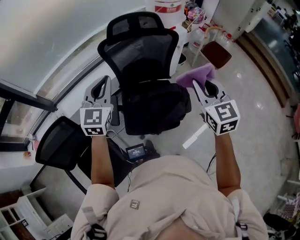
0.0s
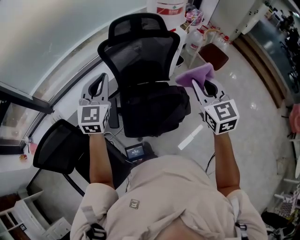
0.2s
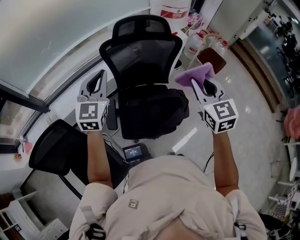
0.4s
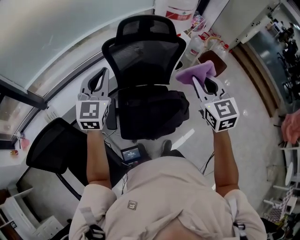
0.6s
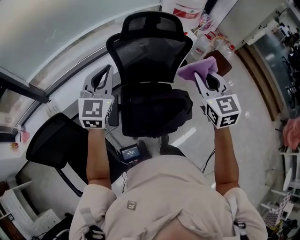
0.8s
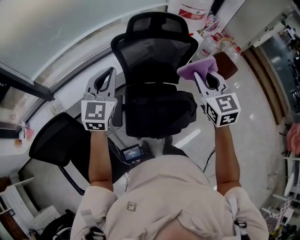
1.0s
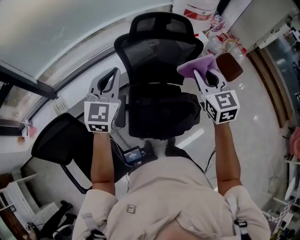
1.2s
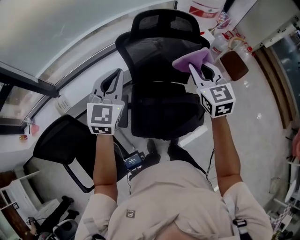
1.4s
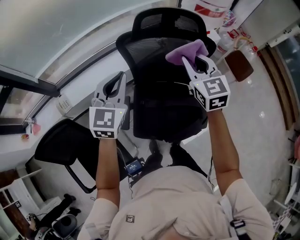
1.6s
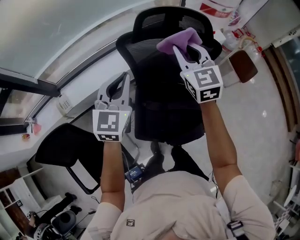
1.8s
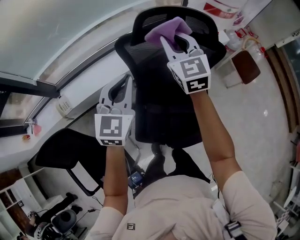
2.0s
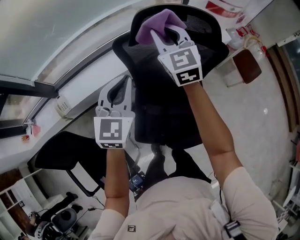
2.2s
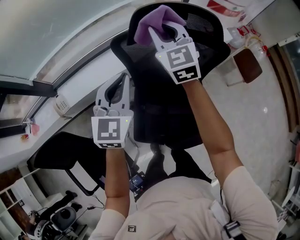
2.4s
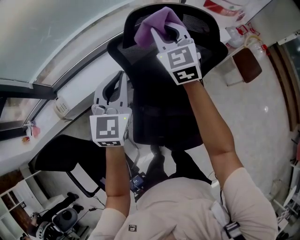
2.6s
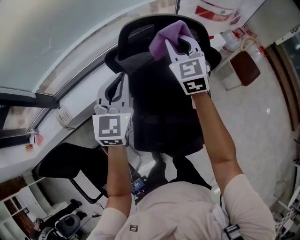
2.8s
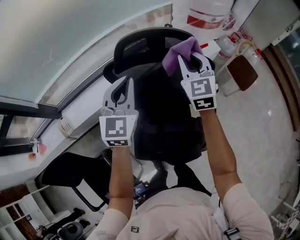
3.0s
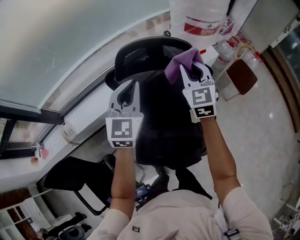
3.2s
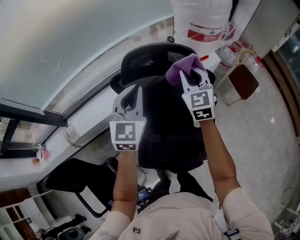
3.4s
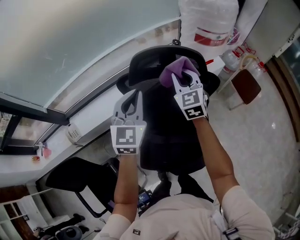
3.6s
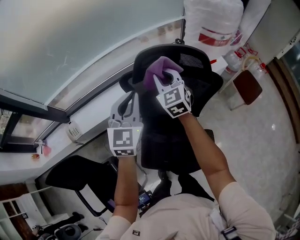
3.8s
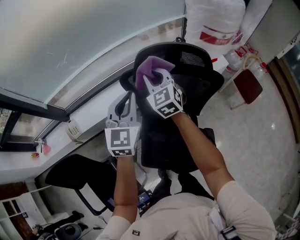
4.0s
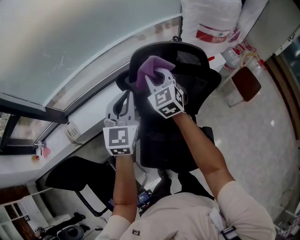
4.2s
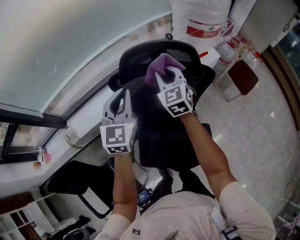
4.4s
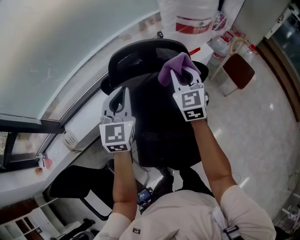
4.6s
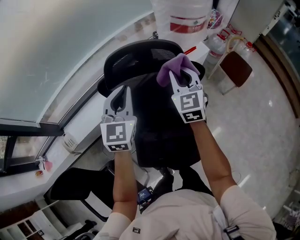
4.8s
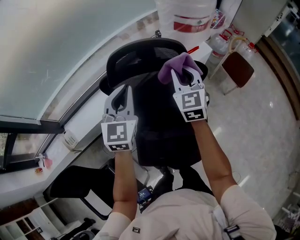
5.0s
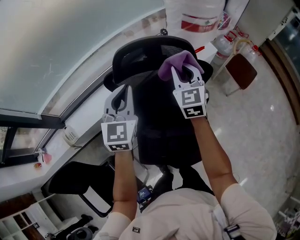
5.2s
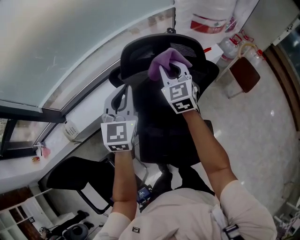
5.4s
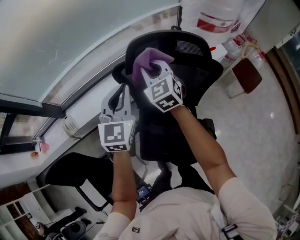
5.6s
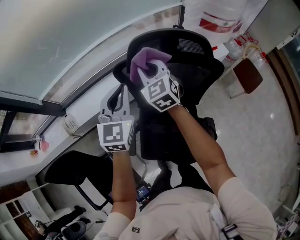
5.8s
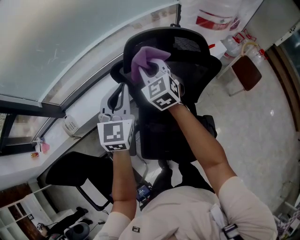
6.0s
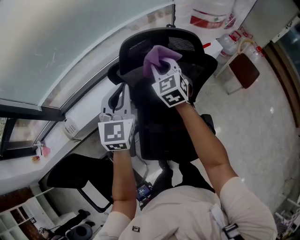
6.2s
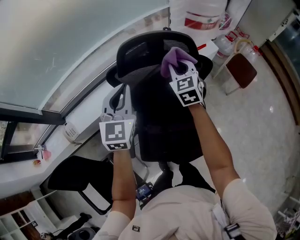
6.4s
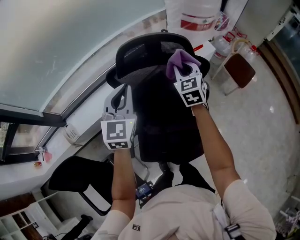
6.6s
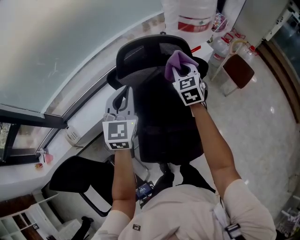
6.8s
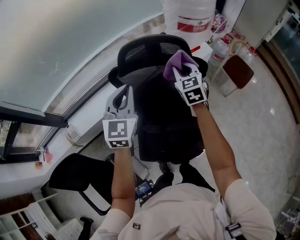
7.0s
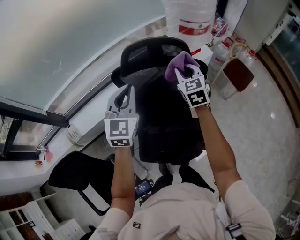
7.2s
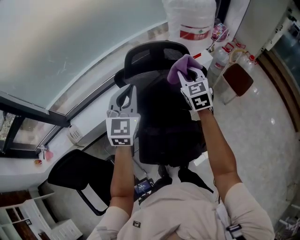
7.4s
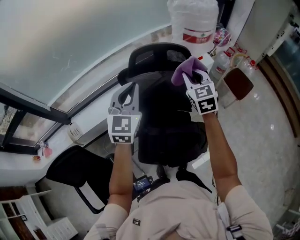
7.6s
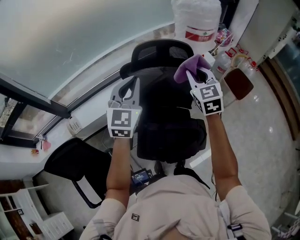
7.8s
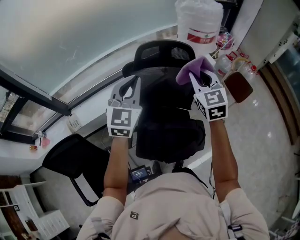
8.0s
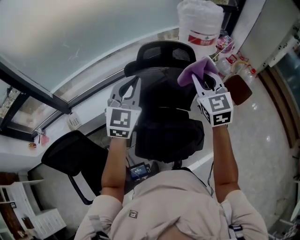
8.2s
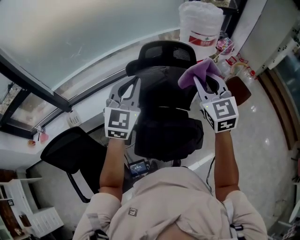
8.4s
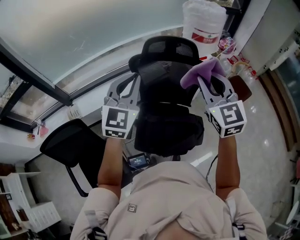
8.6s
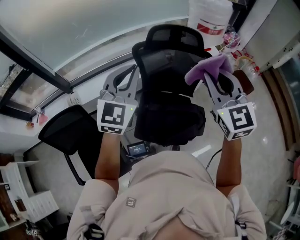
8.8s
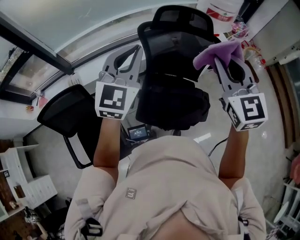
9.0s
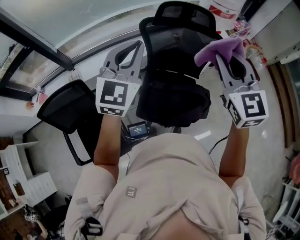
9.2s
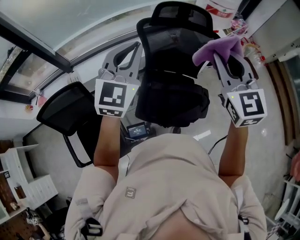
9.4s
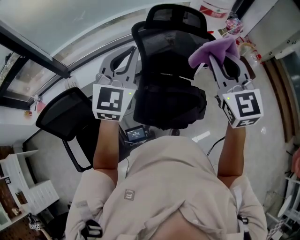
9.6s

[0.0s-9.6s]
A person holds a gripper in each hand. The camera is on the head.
0.0s to 1.6s: The right gripper travels forward and to the left by approximately 30 cm. Meanwhile the left gripper travels forward, to the left and downward by roughly 15 cm.
1.6s to 3.2s: Both grippers move forward and to the right, approximately 15 cm.
3.2s to 4.8s: The left gripper travels to the left and back again, roughly 10 cm each way. The right gripper goes to the left and returns, approximately 20 cm each way.
4.8s to 6.4s: The left gripper goes approximately 5 cm to the left, while the right gripper reaches some 20 cm to the left, then returns.
6.4s to 8.0s: The right gripper is displaced upward and backward by approximately 20 cm, while the left gripper goes roughly 15 cm upward and backward.
8.0s to 9.6s: The right gripper is displaced backward and upward by approximately 20 cm, while the left gripper travels backward by some 15 cm.

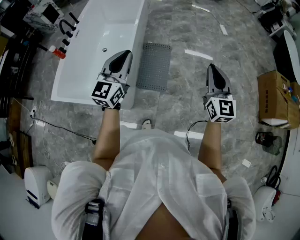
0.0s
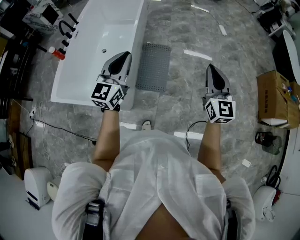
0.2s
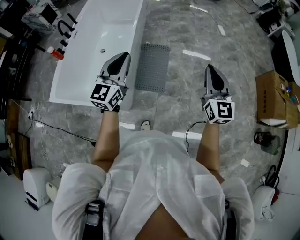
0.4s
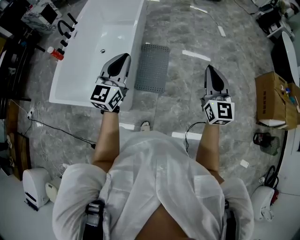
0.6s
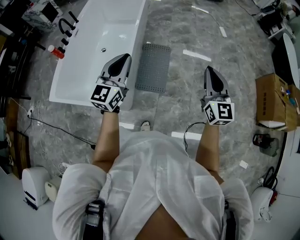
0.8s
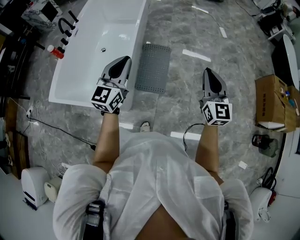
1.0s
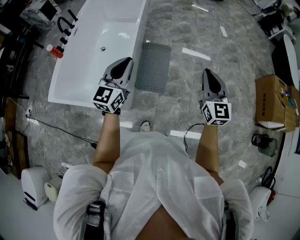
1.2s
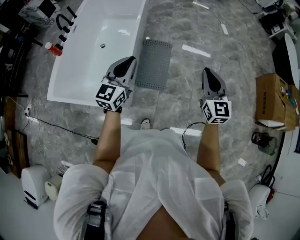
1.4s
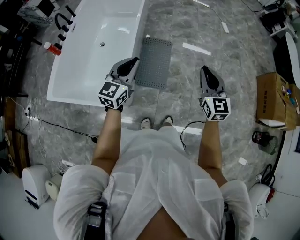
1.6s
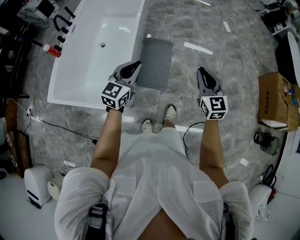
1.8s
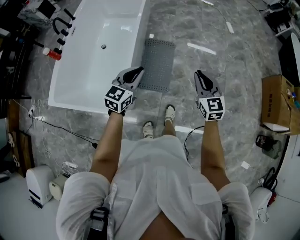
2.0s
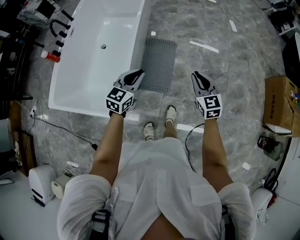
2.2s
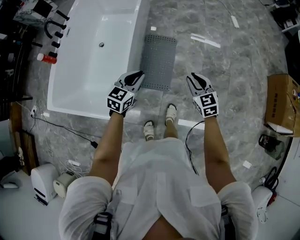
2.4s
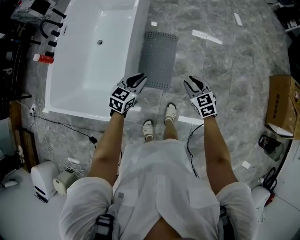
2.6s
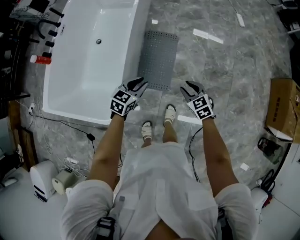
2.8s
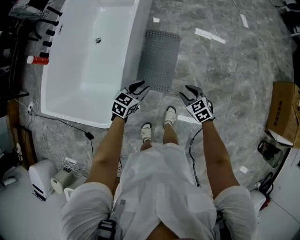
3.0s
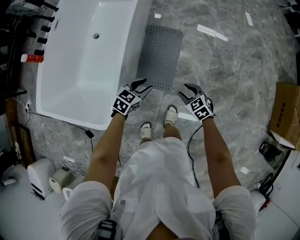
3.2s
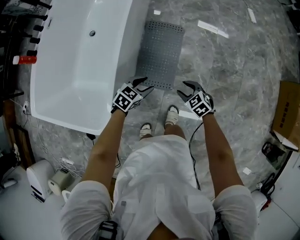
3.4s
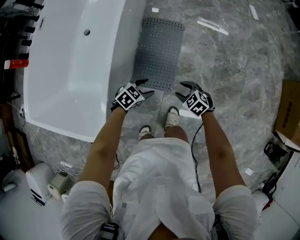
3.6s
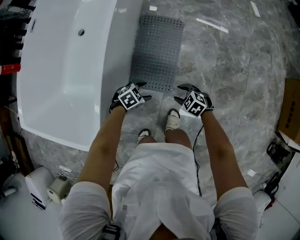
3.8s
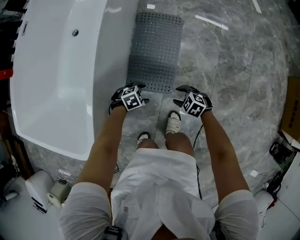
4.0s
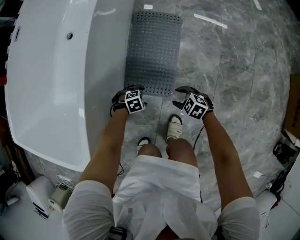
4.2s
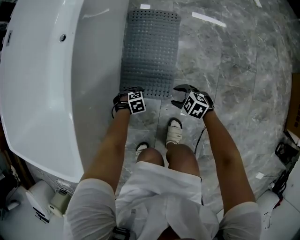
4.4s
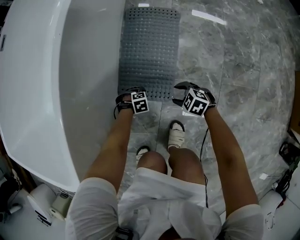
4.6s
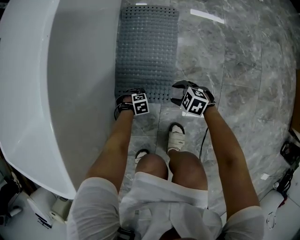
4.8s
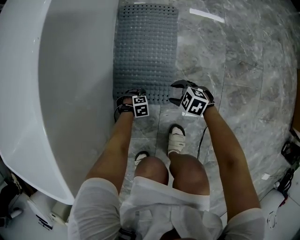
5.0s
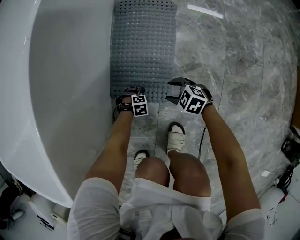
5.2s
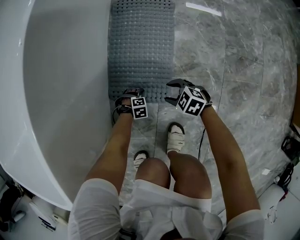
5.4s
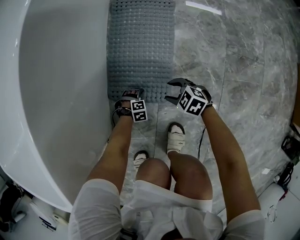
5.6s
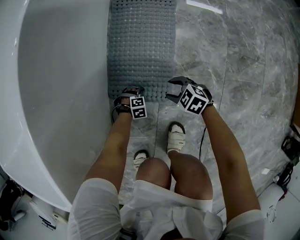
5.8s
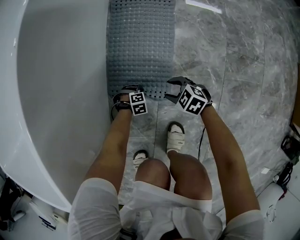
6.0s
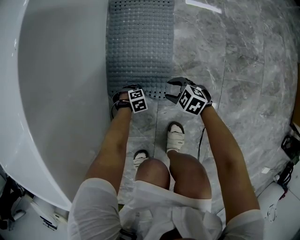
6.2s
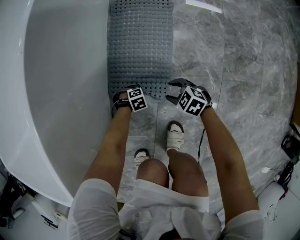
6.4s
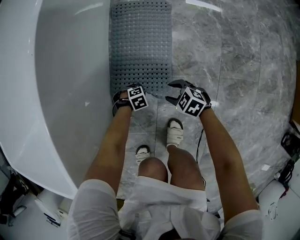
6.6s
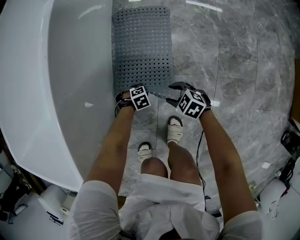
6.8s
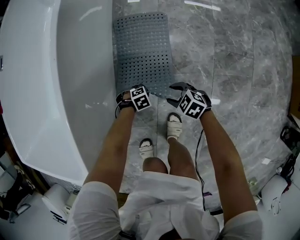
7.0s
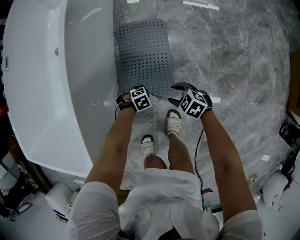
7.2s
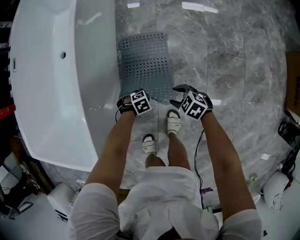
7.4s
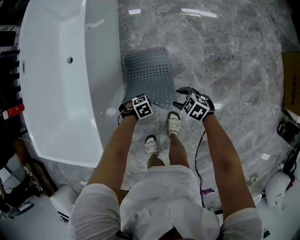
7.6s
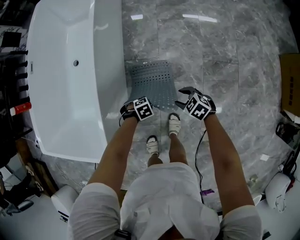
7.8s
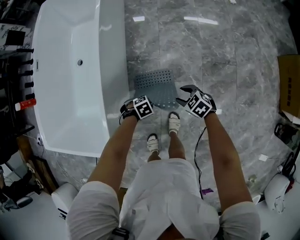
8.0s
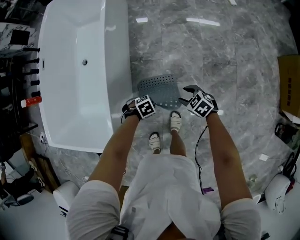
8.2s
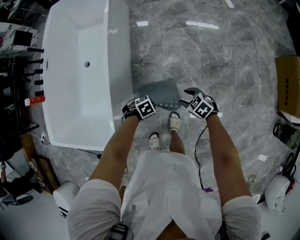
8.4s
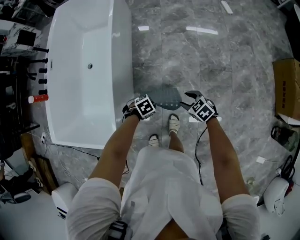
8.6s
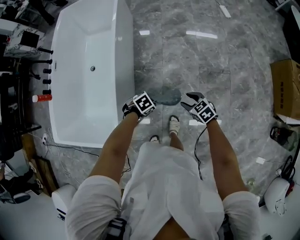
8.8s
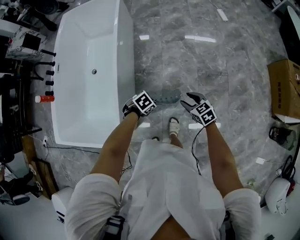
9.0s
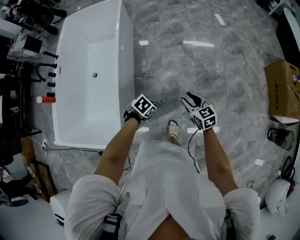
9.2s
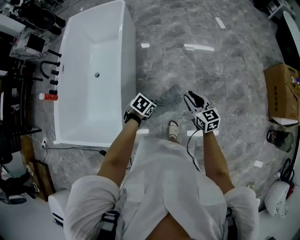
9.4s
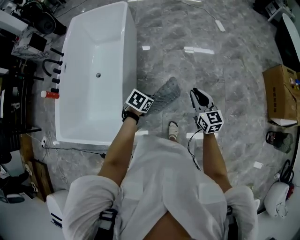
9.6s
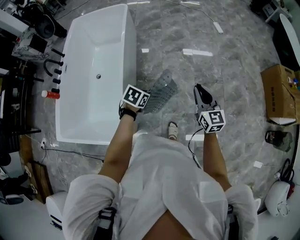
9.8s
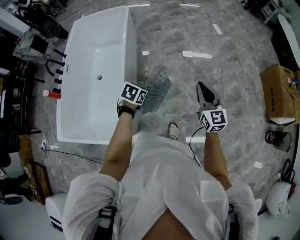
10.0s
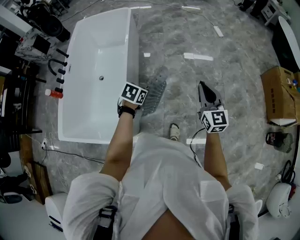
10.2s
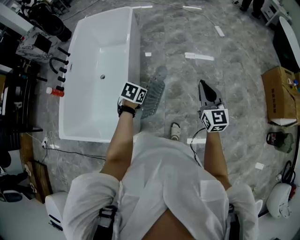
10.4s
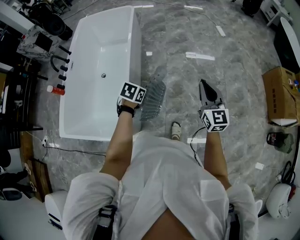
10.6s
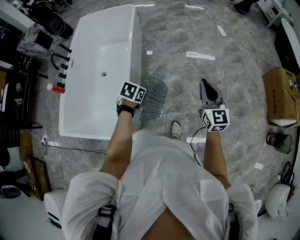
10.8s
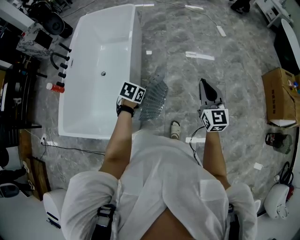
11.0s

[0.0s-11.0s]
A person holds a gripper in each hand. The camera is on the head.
0.0s to 1.6s: The right gripper heads downward and to the left, covering about 10 cm, while the left gripper travels downward by some 10 cm.
1.6s to 3.2s: The grippers both shift downward by some 40 cm. The right gripper tips its fingers downward by approximately 40 degrees, and opens up. Meanwhile the left gripper tips its fingers downward by some 30 degrees.
3.2s to 4.8s: The grippers both shift downward by roughly 50 cm. The left gripper tilts its fingers about 30 degrees downward, and opens up. The right gripper turns by roughly 30 degrees.
4.8s to 6.2s: The left gripper travels downward by roughly 5 cm, and closes up.
6.2s to 7.8s: The grippers both shift upward by some 40 cm.
7.8s to 9.4s: Both grippers travel together upward, some 35 cm. The left gripper rotates some 30 degrees; the right gripper tilts its fingers roughly 40 degrees upward, and closes.
9.4s to 11.0s: The right gripper goes about 15 cm upward, swivels some 30 degrees, and closes its fingers. Meanwhile the left gripper moves upward and to the left, about 15 cm.

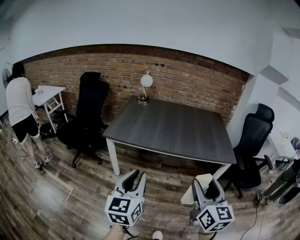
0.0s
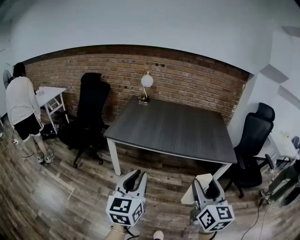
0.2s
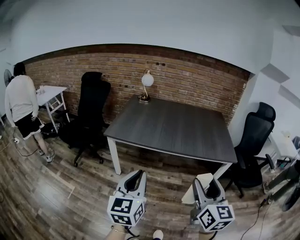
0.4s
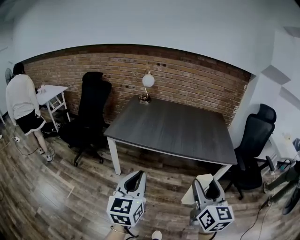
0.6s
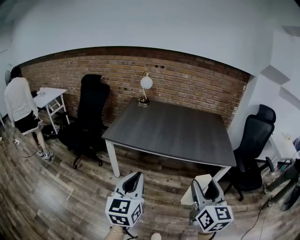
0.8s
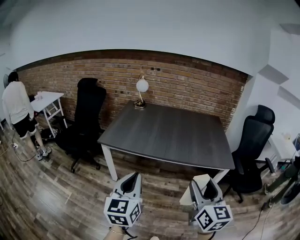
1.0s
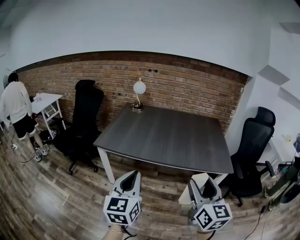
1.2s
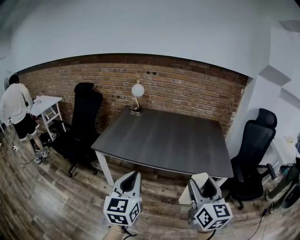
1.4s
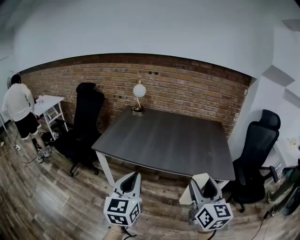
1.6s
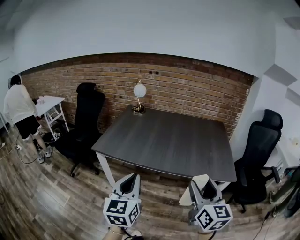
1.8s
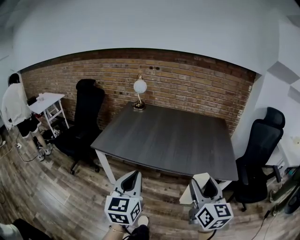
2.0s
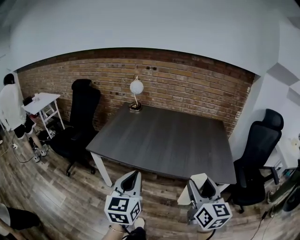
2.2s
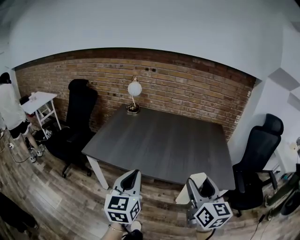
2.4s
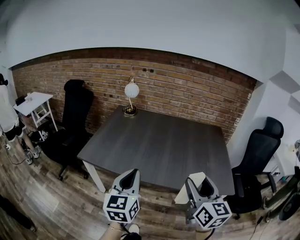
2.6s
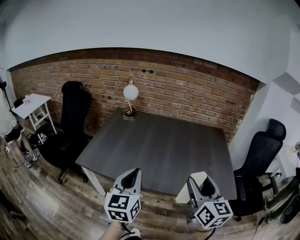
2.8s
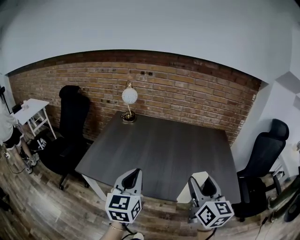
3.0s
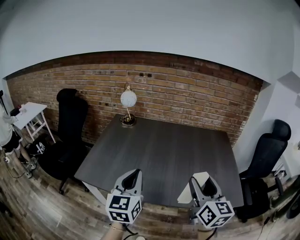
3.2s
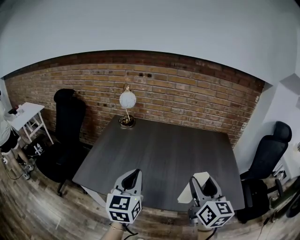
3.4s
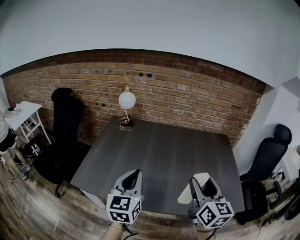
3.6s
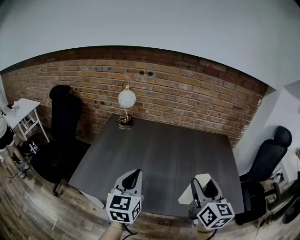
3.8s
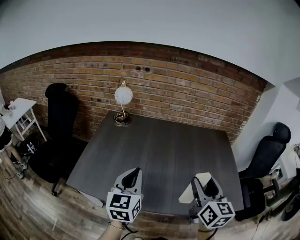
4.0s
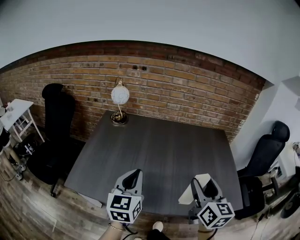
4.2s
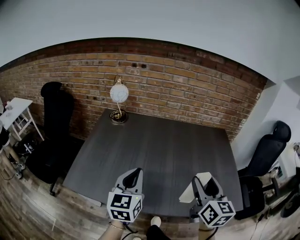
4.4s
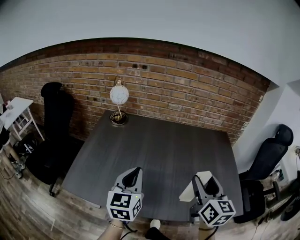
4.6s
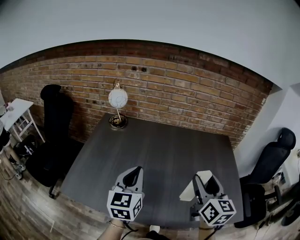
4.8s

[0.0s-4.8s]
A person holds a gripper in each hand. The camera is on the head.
0.0s to 1.6s: Both grippers move forward and to the right, approximately 15 cm.
1.6s to 3.2s: The grippers both shift forward by roughly 25 cm.
3.2s to 4.8s: The grippers both shift forward by roughly 15 cm.
